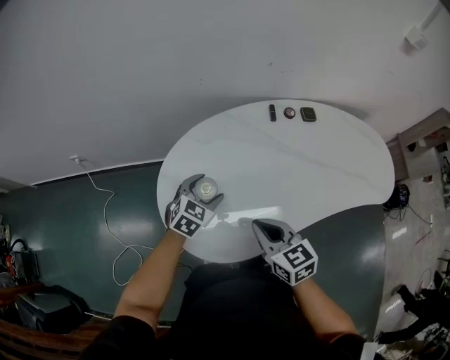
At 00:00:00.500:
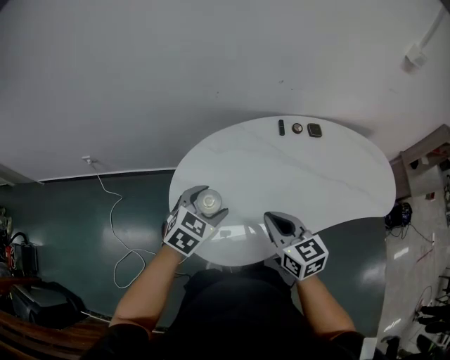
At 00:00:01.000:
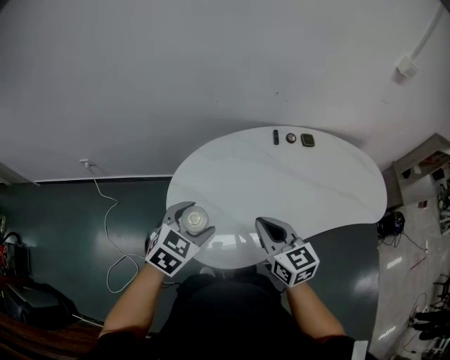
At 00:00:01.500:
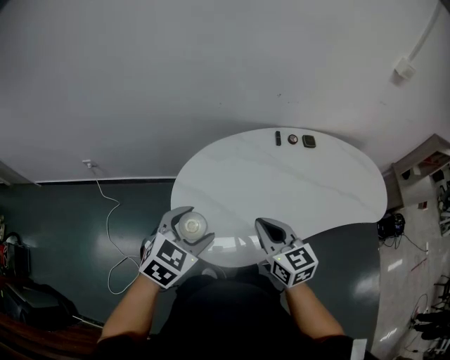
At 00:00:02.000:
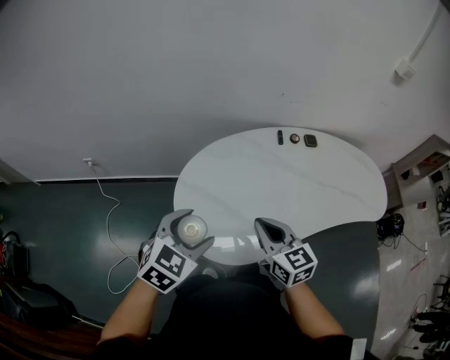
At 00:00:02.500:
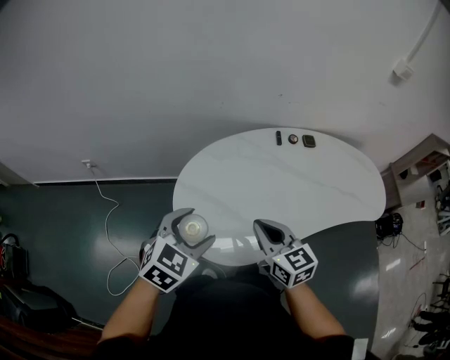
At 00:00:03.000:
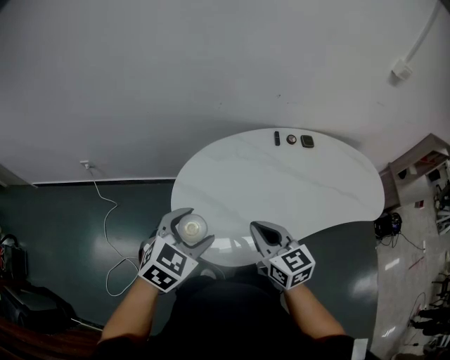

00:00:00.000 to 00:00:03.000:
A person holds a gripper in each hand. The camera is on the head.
00:00:00.000 to 00:00:01.500: The left gripper heads upward and backward, covering about 20 cm; the right gripper shifts some 5 cm upward.
00:00:01.500 to 00:00:03.000: The grippers stay close to where they were, moving slightly.

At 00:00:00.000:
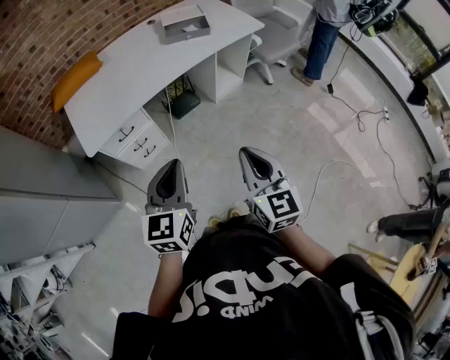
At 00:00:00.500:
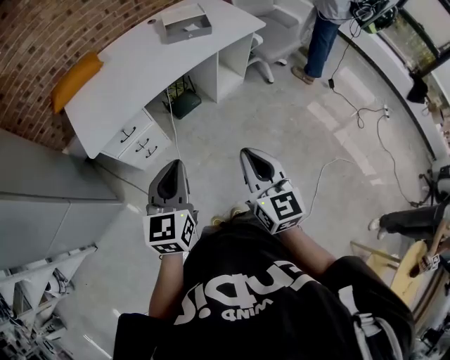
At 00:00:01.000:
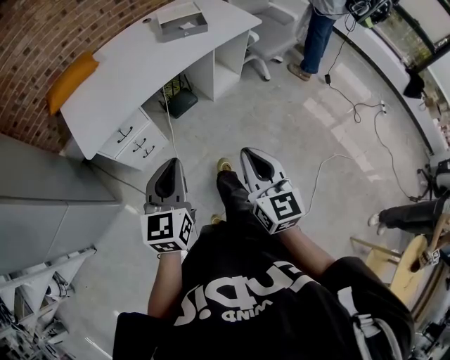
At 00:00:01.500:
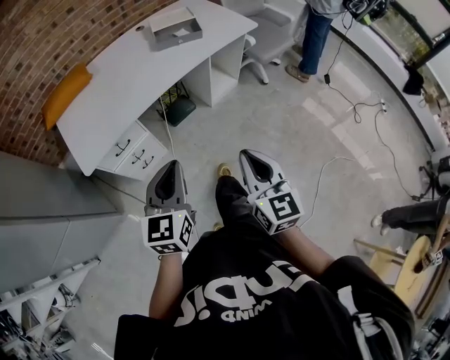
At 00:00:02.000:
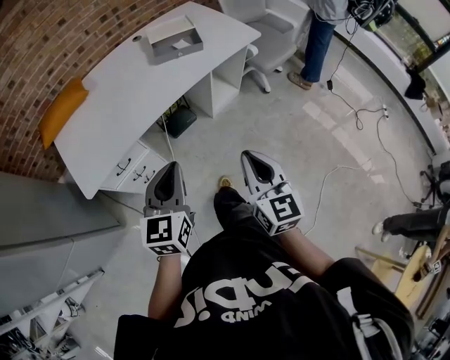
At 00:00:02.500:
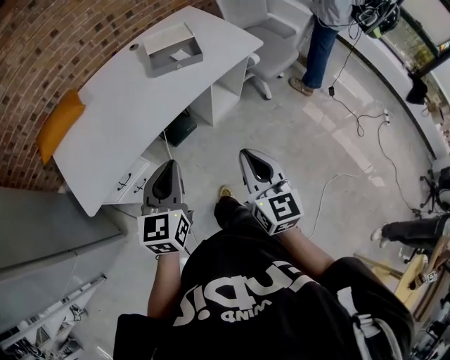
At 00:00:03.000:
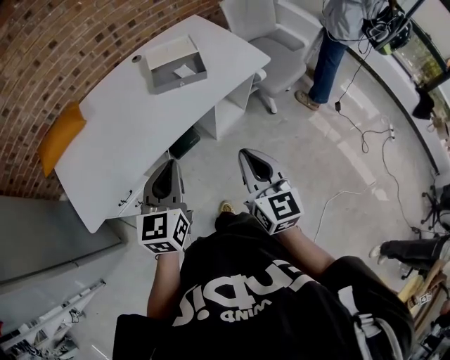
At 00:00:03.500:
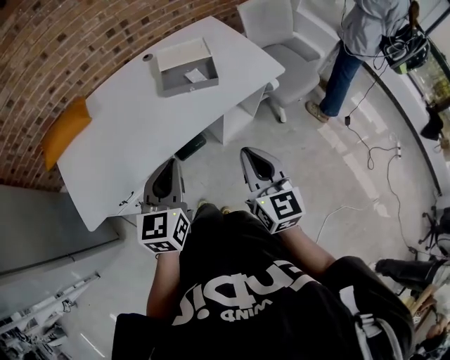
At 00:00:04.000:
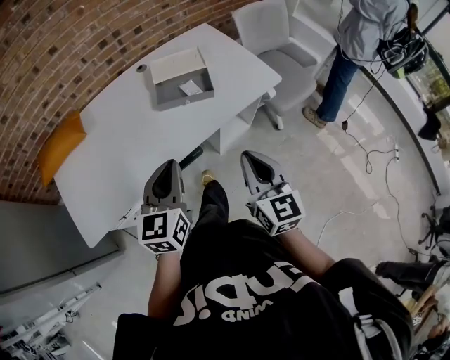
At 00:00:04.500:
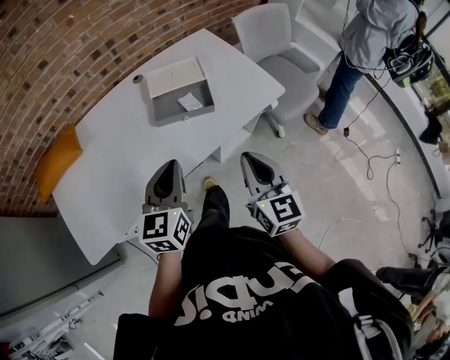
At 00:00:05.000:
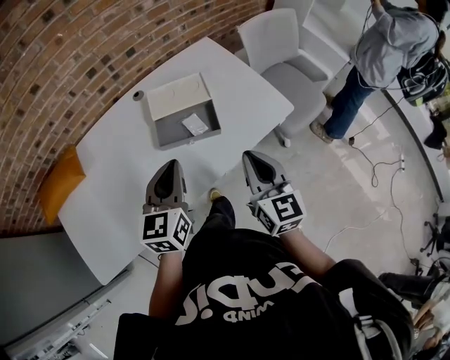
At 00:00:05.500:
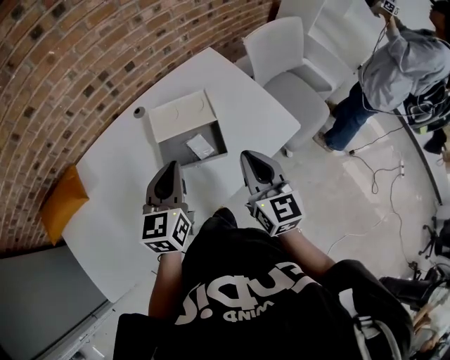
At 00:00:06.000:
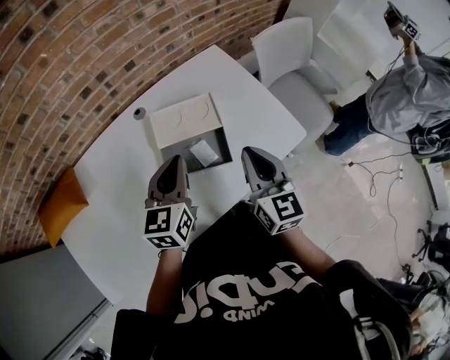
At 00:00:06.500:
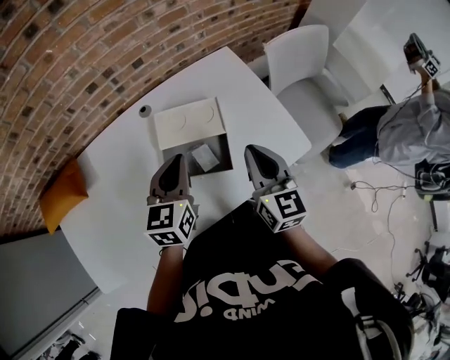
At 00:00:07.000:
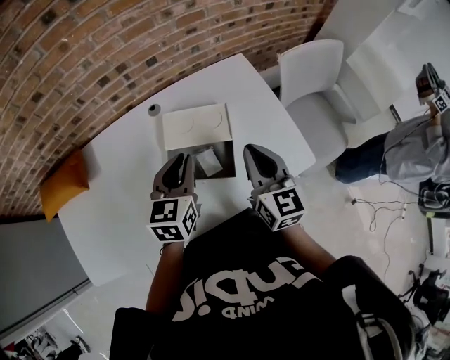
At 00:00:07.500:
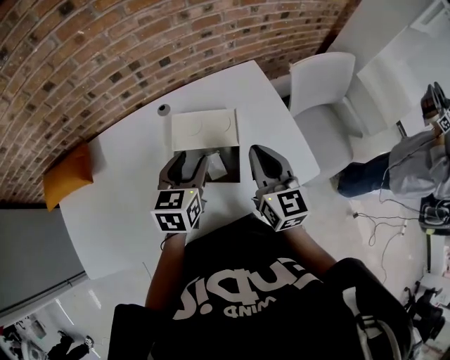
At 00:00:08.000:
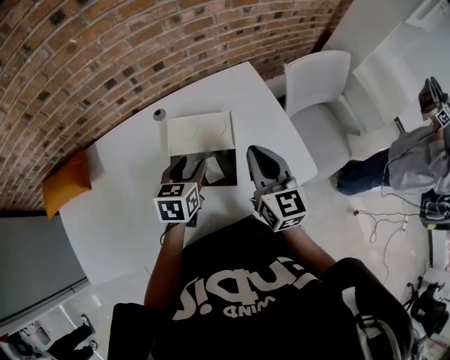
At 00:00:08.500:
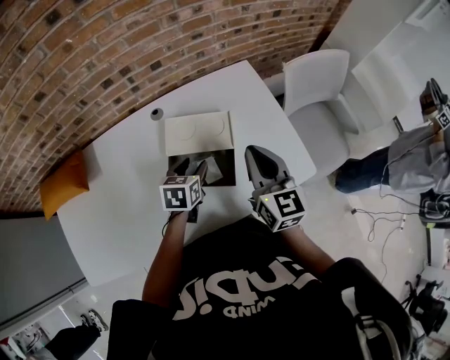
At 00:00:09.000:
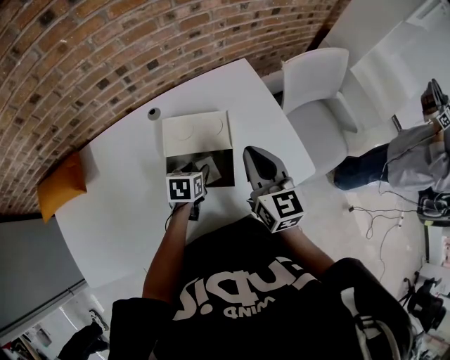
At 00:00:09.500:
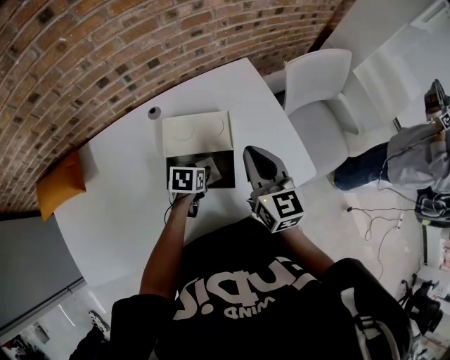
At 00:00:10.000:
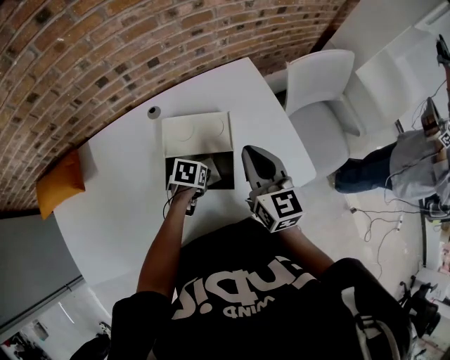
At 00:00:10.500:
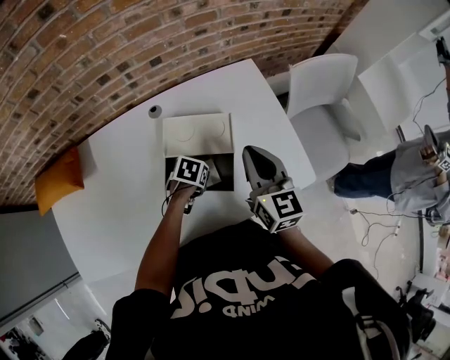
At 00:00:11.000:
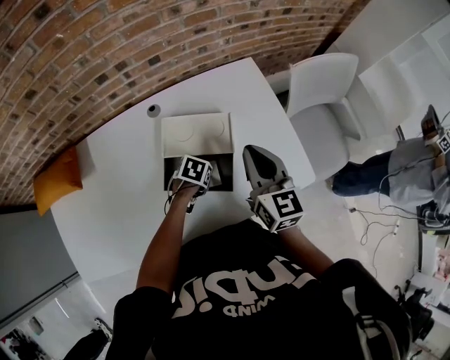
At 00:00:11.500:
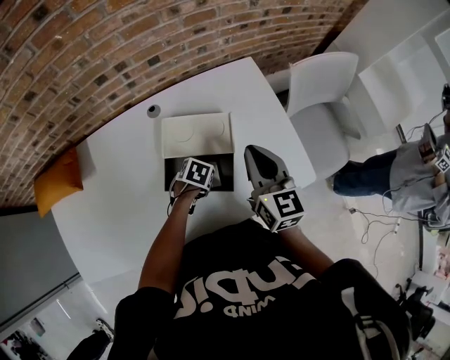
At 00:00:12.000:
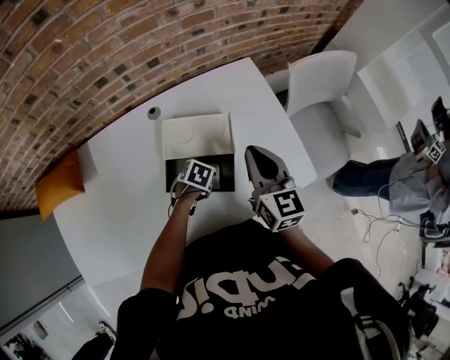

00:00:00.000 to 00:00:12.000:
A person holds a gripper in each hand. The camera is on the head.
00:00:00.000 to 00:00:02.000: The grippers both shift forward by about 15 cm.
00:00:02.000 to 00:00:04.000: The two grippers go about 30 cm forward.
00:00:04.000 to 00:00:06.000: The two grippers go some 35 cm forward.
00:00:06.000 to 00:00:08.000: The right gripper goes roughly 10 cm forward. Meanwhile the left gripper shifts roughly 10 cm downward and forward, and opens.
00:00:08.000 to 00:00:10.000: The left gripper goes roughly 15 cm downward, and changes its angle by some 40 degrees.
00:00:10.000 to 00:00:12.000: The left gripper closes.

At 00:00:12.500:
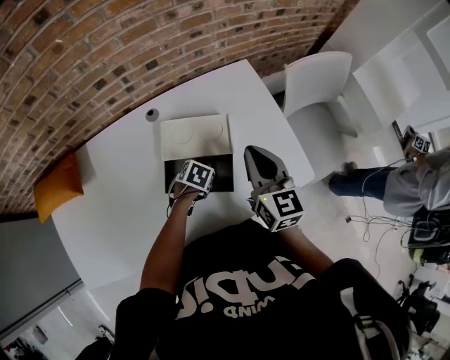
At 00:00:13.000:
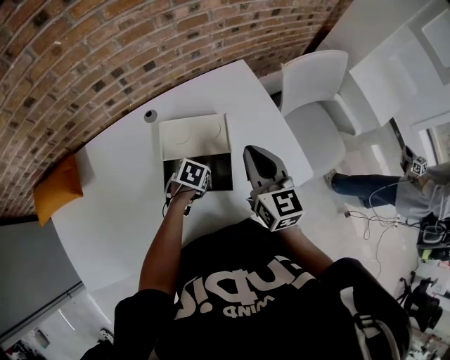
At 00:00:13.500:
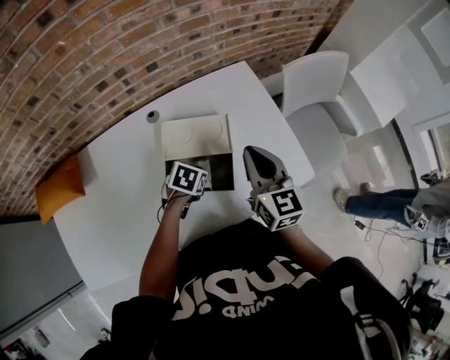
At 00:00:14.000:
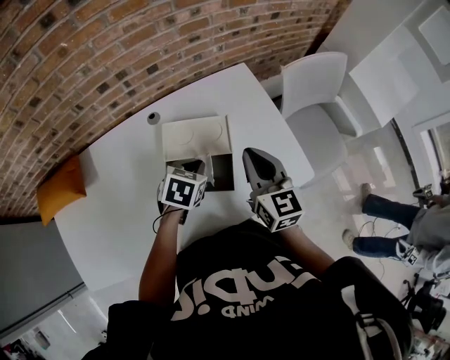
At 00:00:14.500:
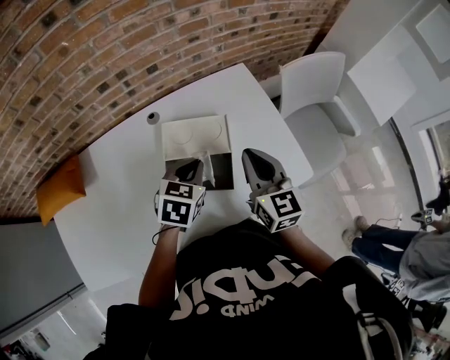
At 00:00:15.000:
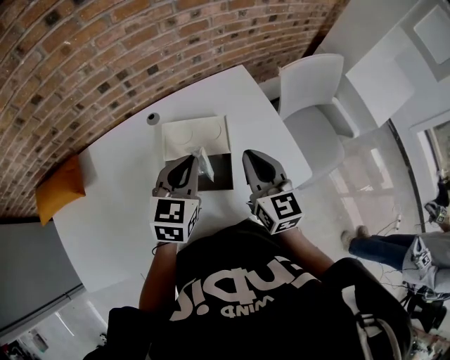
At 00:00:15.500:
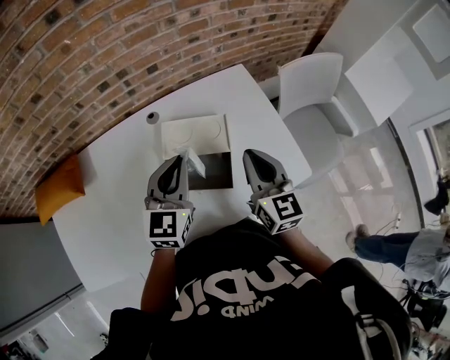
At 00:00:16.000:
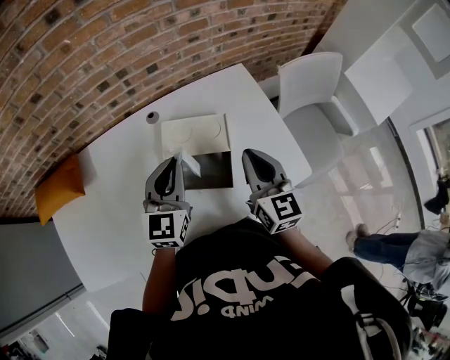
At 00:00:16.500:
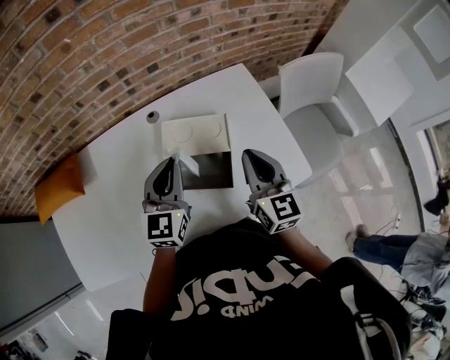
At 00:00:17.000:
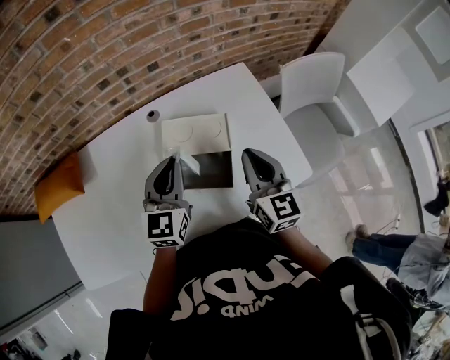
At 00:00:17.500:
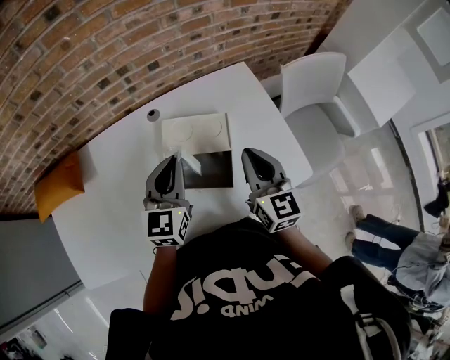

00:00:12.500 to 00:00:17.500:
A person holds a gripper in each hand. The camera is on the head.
00:00:12.500 to 00:00:15.000: The left gripper heads upward, covering roughly 30 cm, and tilts its fingers about 50 degrees upward.
00:00:15.000 to 00:00:17.500: The grippers move only a little.

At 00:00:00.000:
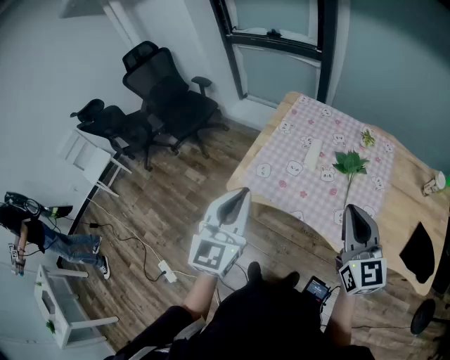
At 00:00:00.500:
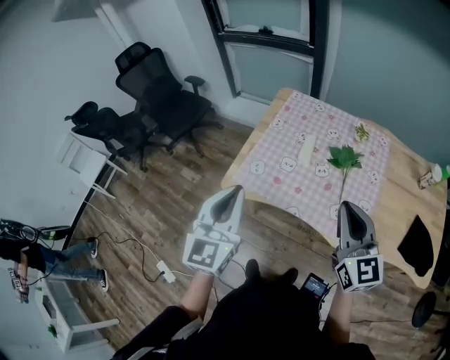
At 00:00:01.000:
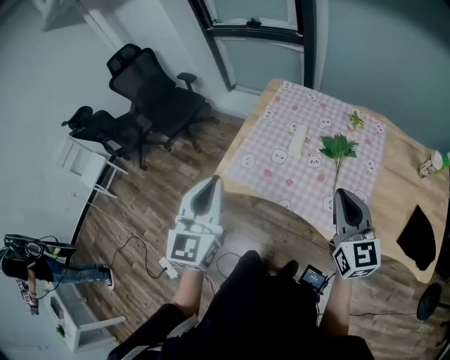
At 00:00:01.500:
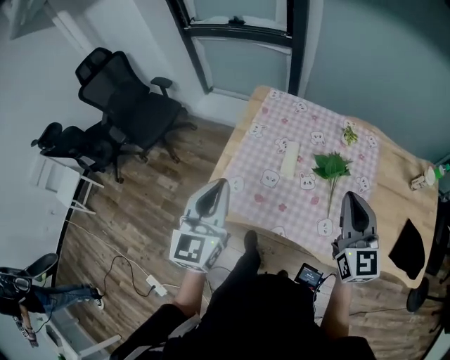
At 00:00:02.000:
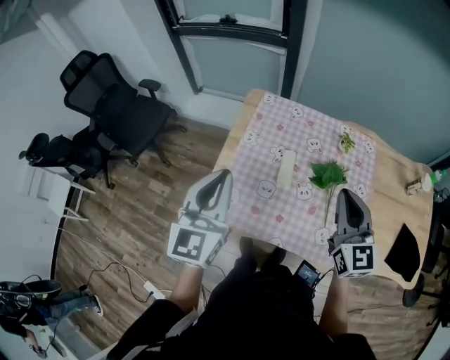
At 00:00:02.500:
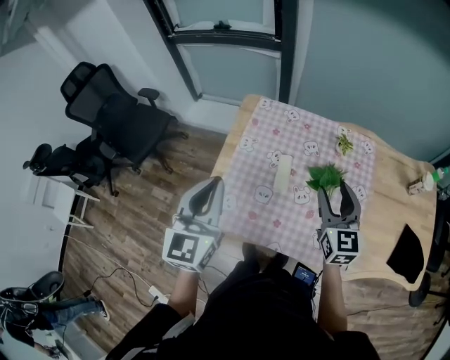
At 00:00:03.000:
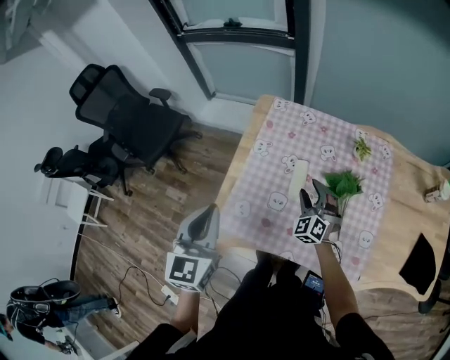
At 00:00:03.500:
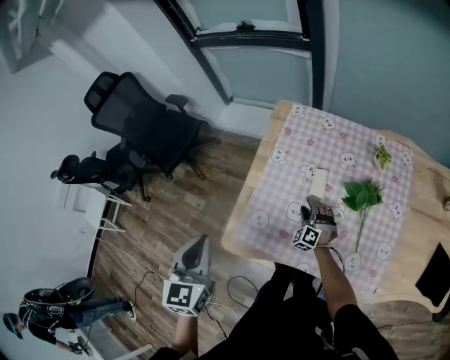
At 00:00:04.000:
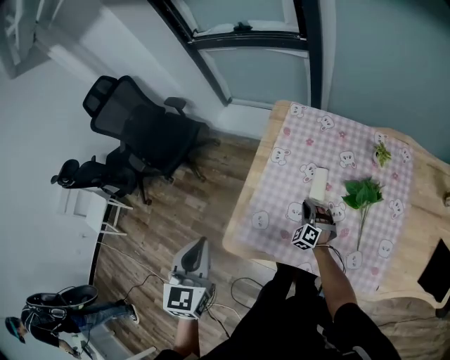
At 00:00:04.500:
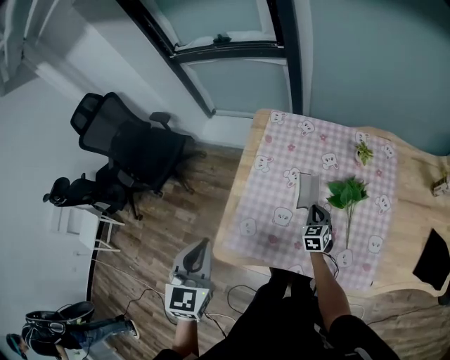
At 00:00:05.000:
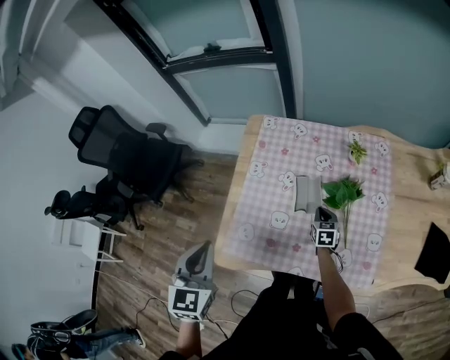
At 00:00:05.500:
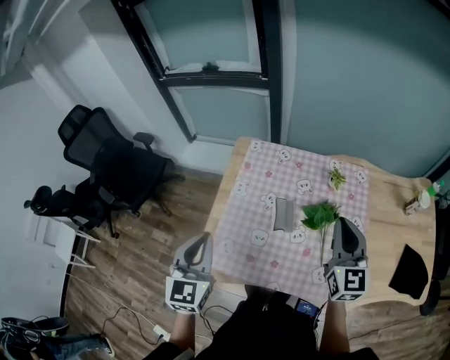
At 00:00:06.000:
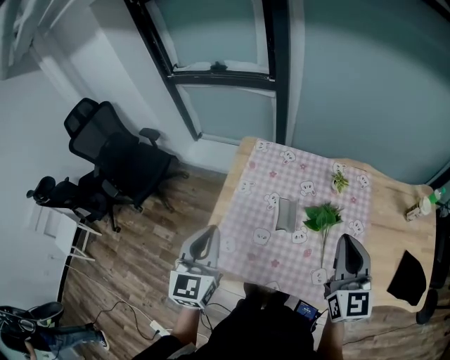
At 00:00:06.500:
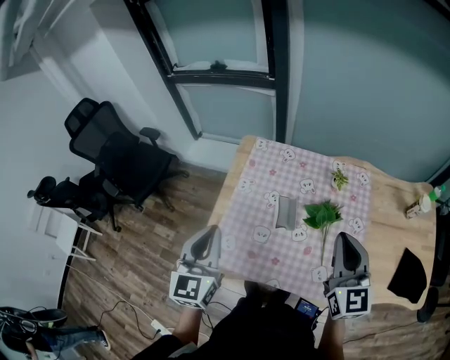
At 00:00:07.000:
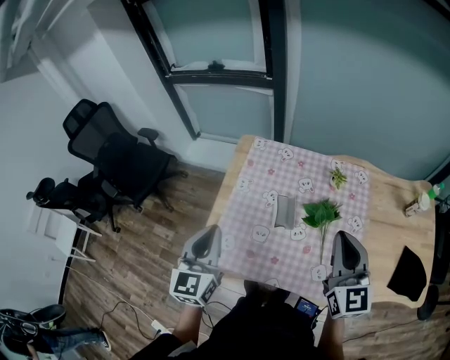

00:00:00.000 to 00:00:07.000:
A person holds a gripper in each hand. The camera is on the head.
00:00:00.000 to 00:00:02.000: Both grippers move forward, some 25 cm.
00:00:02.000 to 00:00:03.500: The right gripper travels downward by some 40 cm, twists about 50 degrees counterclockwise, seen from behind, and opens up; the left gripper goes some 15 cm to the left and downward, and changes its angle by some 30 degrees.
00:00:03.500 to 00:00:05.000: The left gripper heads to the right, covering roughly 5 cm, while the right gripper goes approximately 15 cm to the right, rotates around the line of its fingers by roughly 70 degrees, clockwise from behind, and closes.
00:00:05.000 to 00:00:07.000: The right gripper goes roughly 40 cm upward, and tilts its fingers roughly 40 degrees upward, while the left gripper changes place by approximately 5 cm.
